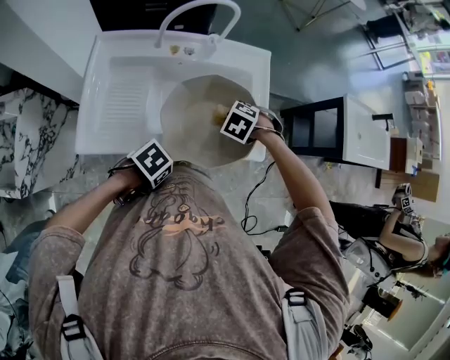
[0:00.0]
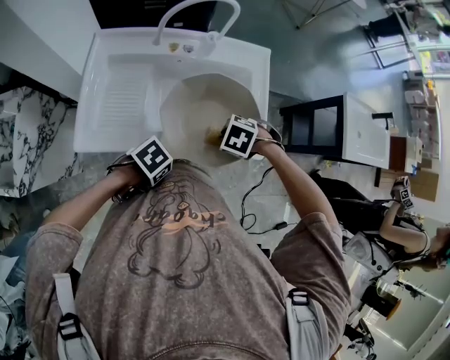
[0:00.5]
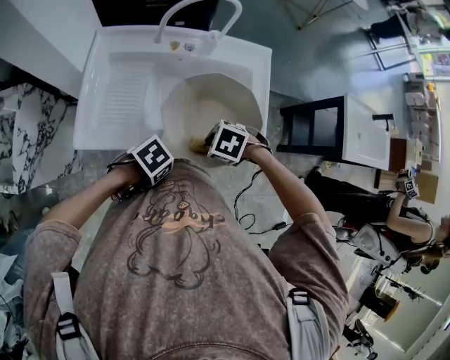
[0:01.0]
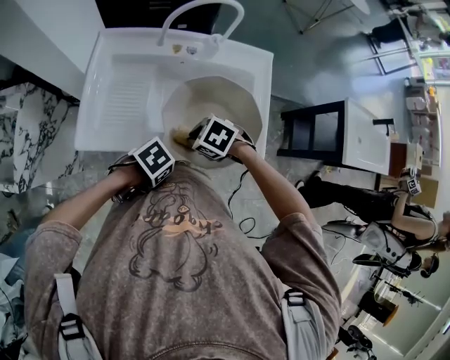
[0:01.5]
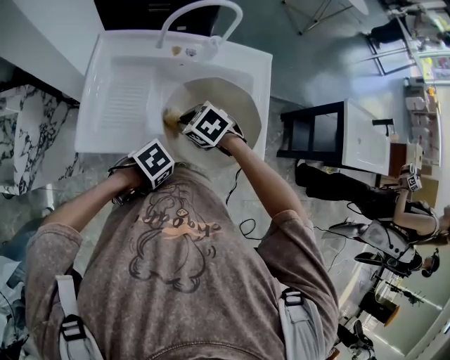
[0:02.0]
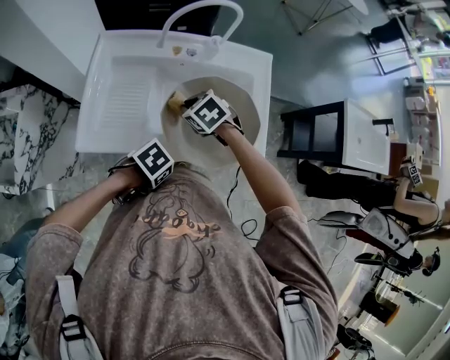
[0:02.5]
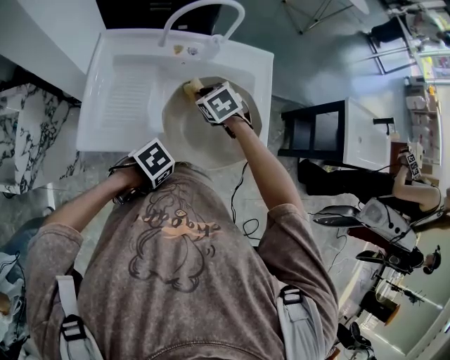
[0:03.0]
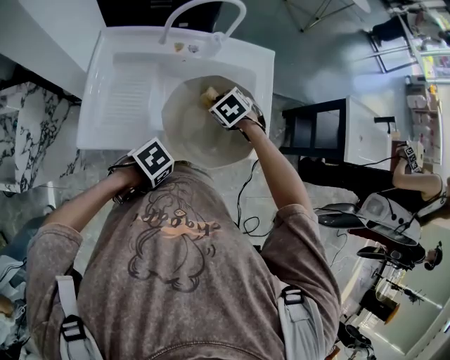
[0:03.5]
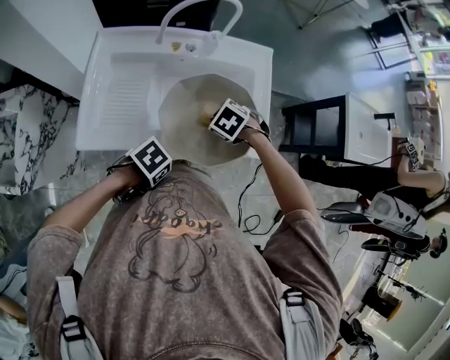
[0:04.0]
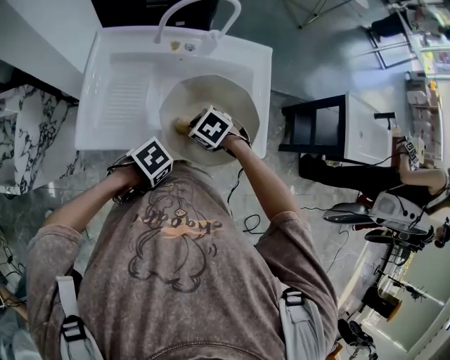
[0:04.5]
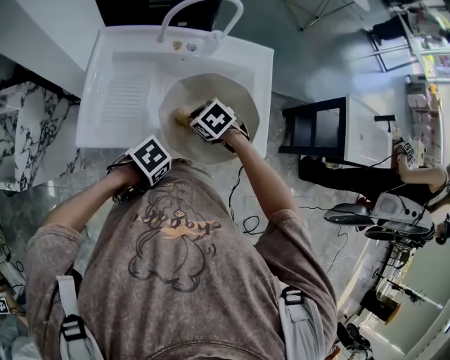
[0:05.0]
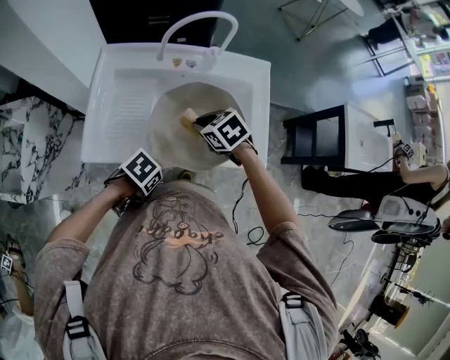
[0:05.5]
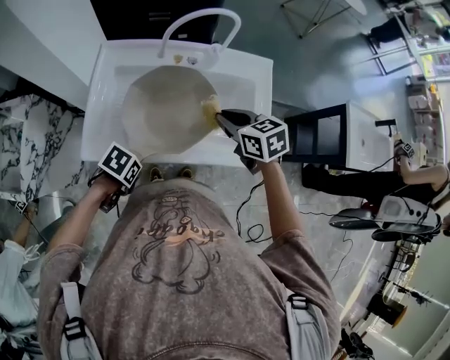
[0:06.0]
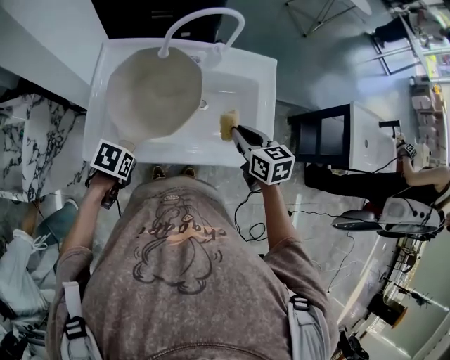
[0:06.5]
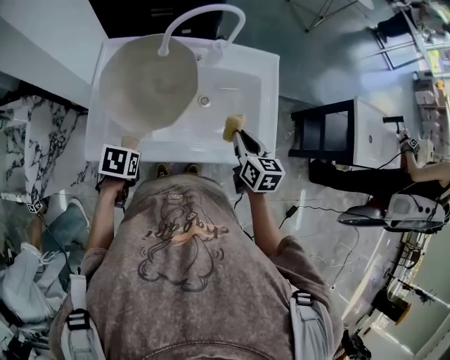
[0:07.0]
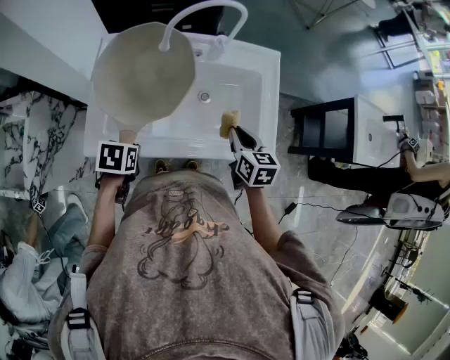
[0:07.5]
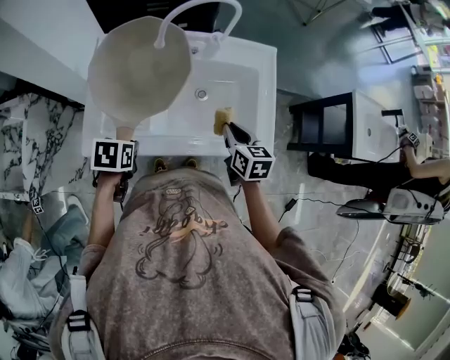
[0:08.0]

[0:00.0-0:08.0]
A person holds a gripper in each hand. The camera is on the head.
0:00.0 to 0:02.0: The right gripper moves roughly 15 cm, and rotates roughly 30 degrees.
0:02.0 to 0:04.0: The right gripper ends up roughly 10 cm from where it was, and changes its angle by about 20 degrees.
0:04.0 to 0:06.0: The right gripper goes approximately 10 cm upward, and tips its fingers upward by roughly 40 degrees.
0:06.0 to 0:08.0: The right gripper travels downward by roughly 10 cm, and changes its angle by approximately 30 degrees.

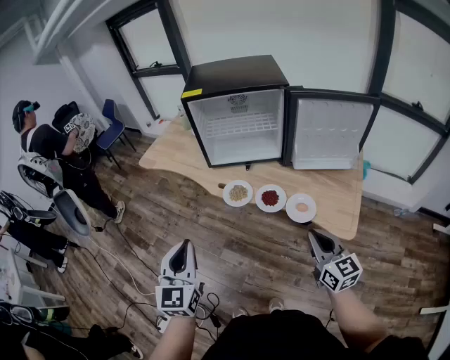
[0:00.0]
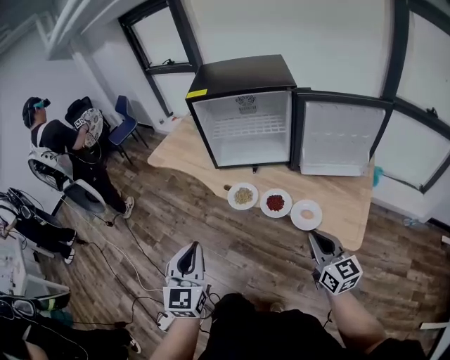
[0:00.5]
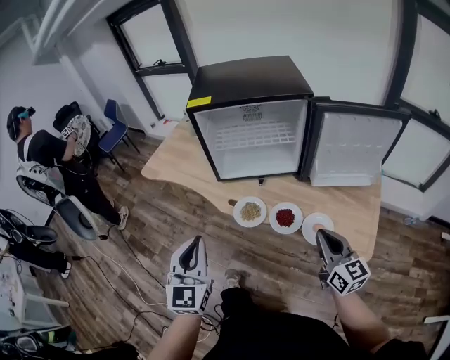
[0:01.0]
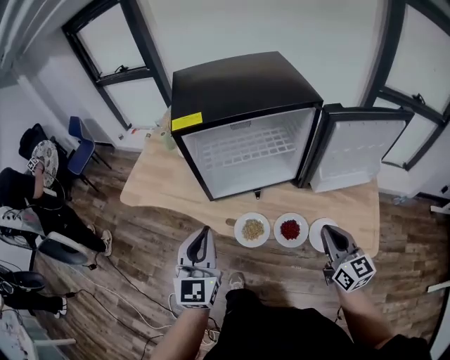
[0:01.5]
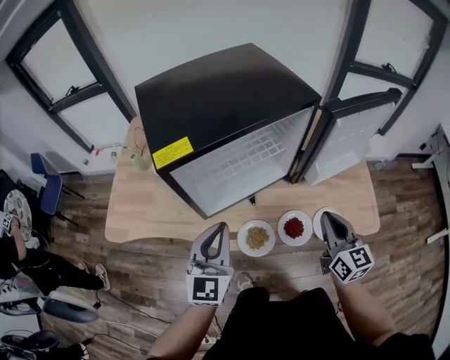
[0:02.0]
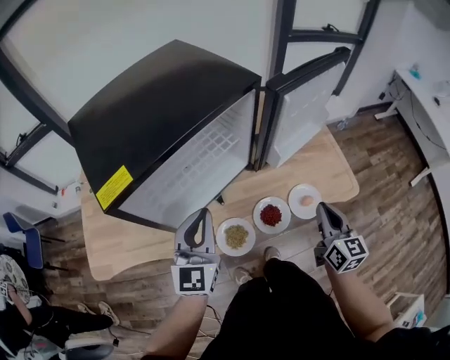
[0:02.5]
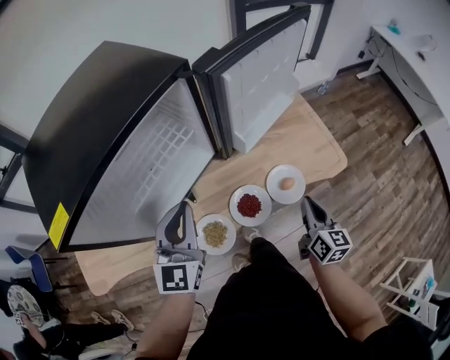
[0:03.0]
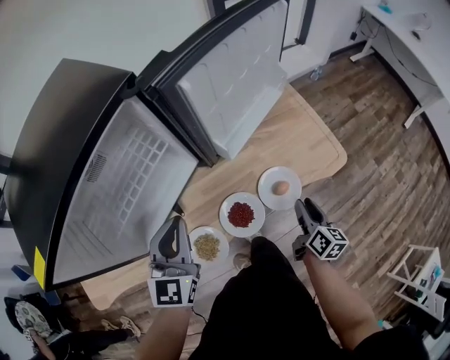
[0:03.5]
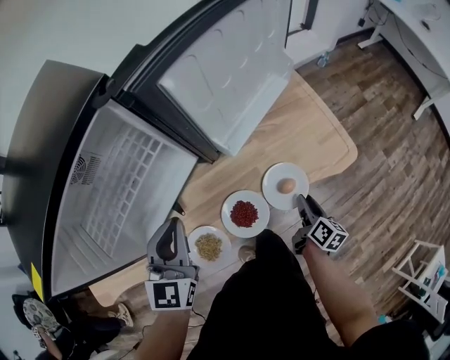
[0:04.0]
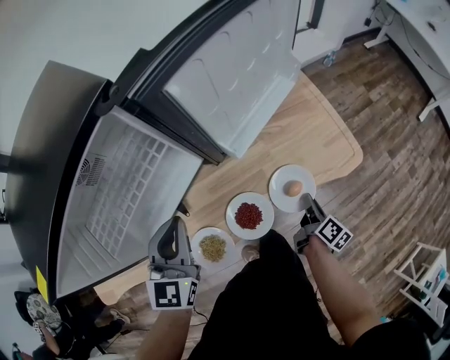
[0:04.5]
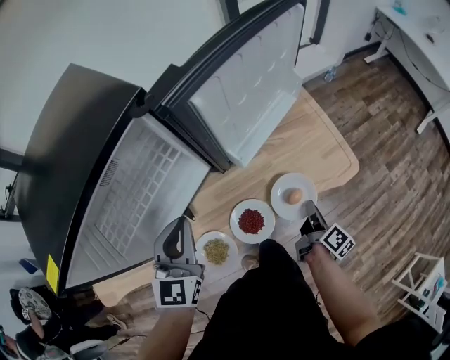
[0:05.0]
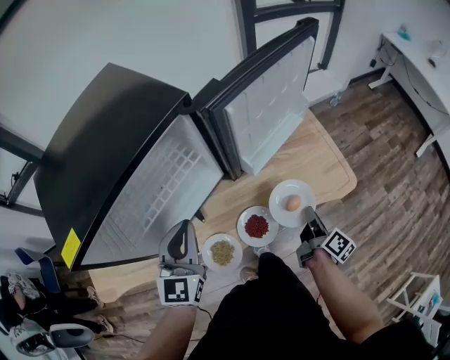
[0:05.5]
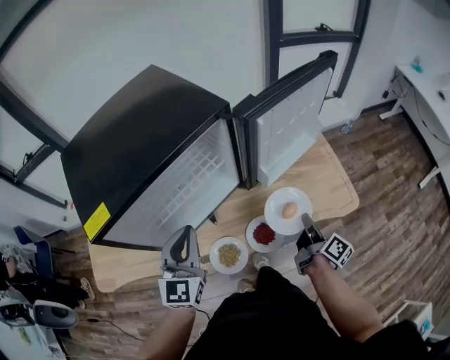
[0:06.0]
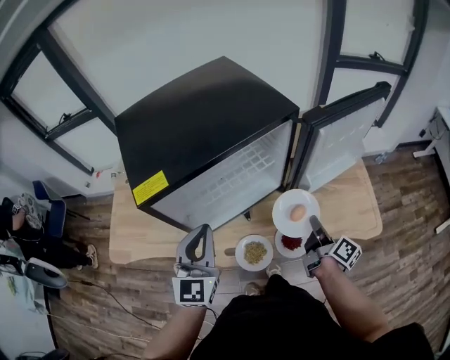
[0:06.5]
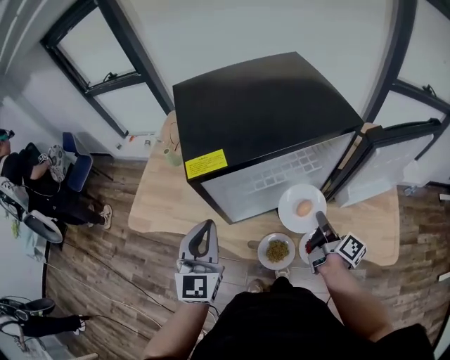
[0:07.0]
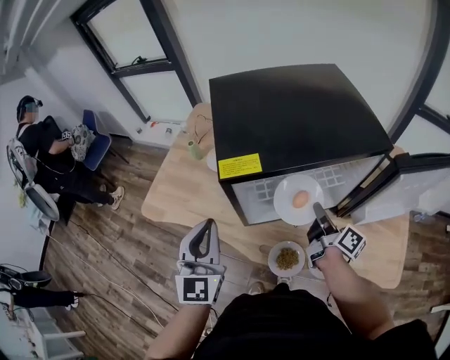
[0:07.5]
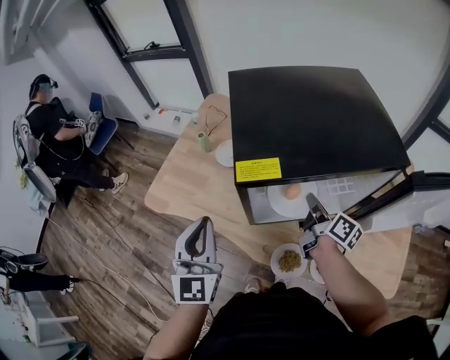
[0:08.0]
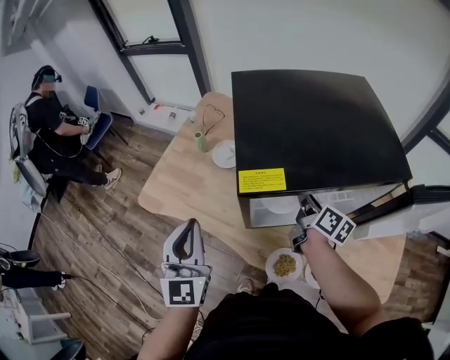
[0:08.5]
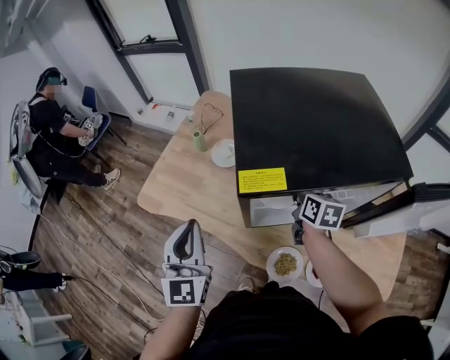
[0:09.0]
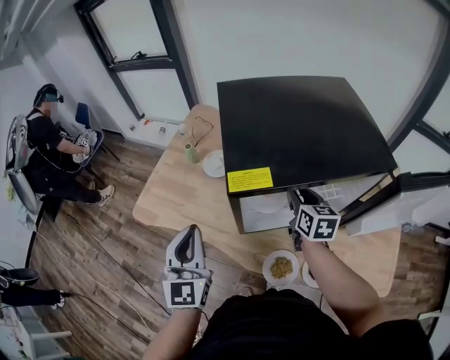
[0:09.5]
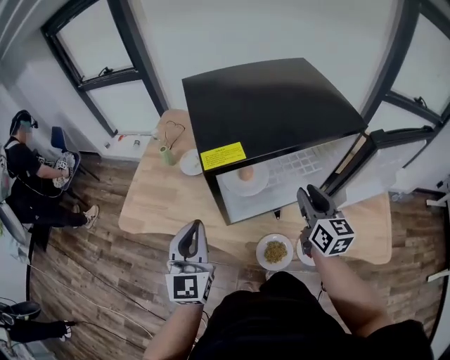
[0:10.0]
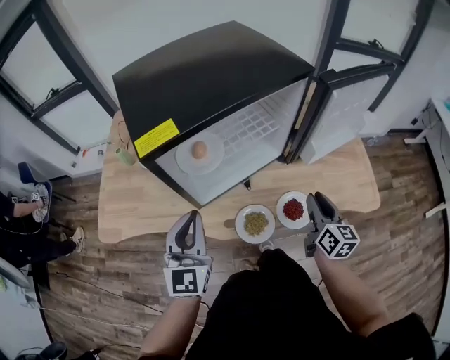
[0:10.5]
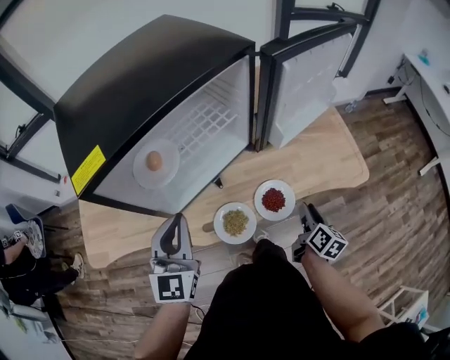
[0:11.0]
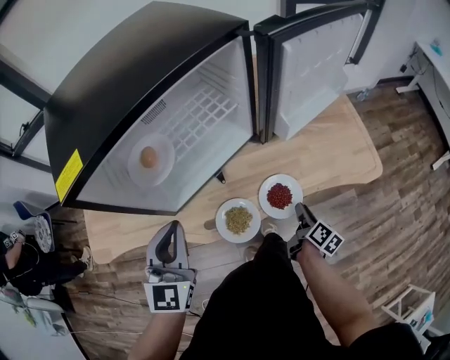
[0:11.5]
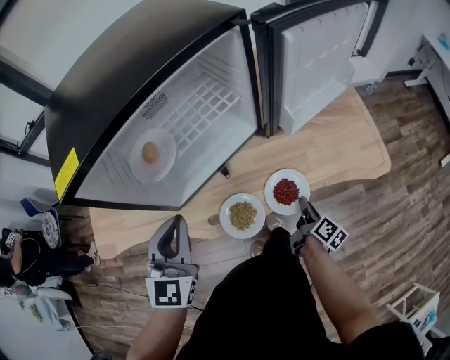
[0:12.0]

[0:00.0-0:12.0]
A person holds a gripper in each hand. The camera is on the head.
0:00.0 to 0:02.0: The right gripper shifts by some 25 cm, and swivels some 30 degrees; the left gripper shifts by roughly 40 cm, and turns by roughly 40 degrees.
0:02.0 to 0:04.0: The left gripper moves approximately 20 cm, and swivels some 30 degrees. Meanwhile the right gripper is displaced downward by about 30 cm, changes its angle by some 60 degrees, and opens its fingers.
0:04.0 to 0:06.0: The right gripper shifts some 20 cm upward and to the left, turns by some 30 degrees, and closes its fingers. Meanwhile the left gripper goes about 10 cm upward, to the left and backward.
0:06.0 to 0:08.0: The right gripper ends up roughly 40 cm from where it was, and turns by approximately 40 degrees, while the left gripper shifts by approximately 25 cm, and rotates roughly 40 degrees.
0:08.0 to 0:10.0: The right gripper moves backward and upward, some 10 cm, rotates around the line of its fingers by some 40 degrees, counterclockwise from behind, and opens.
0:10.0 to 0:12.0: The left gripper ends up approximately 15 cm from where it was, and turns by some 30 degrees. Meanwhile the right gripper goes approximately 30 cm downward, rolls clockwise, seen from behind, by some 60 degrees, and closes its fingers.

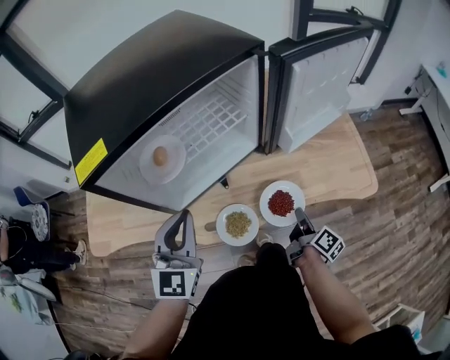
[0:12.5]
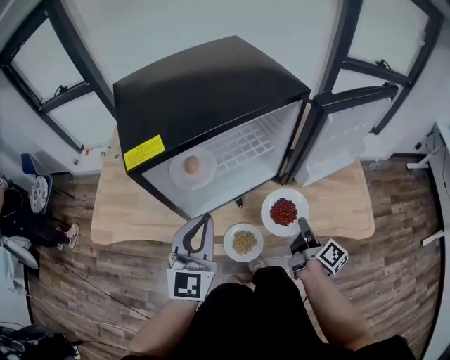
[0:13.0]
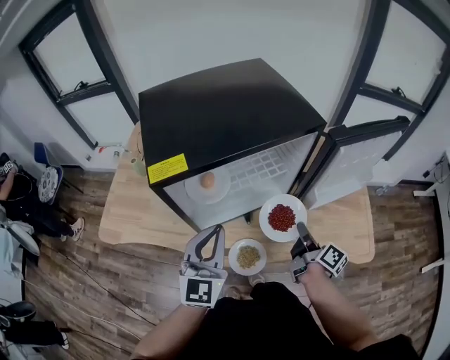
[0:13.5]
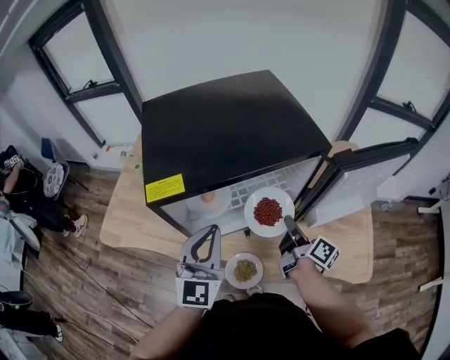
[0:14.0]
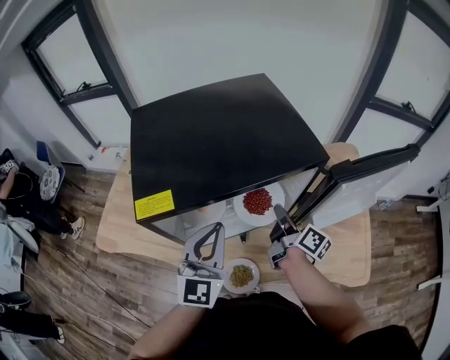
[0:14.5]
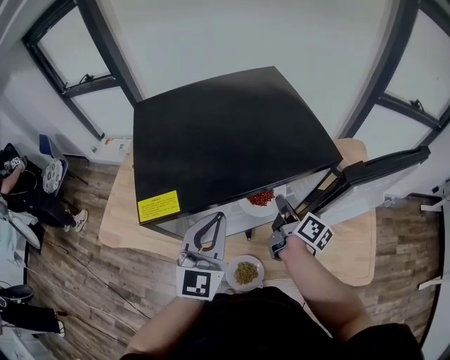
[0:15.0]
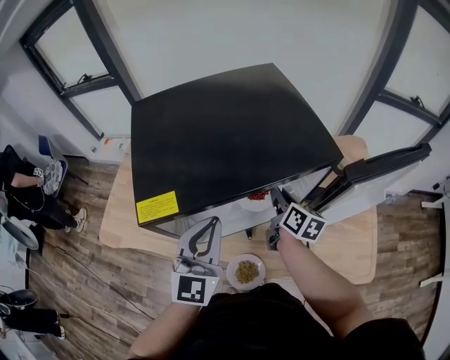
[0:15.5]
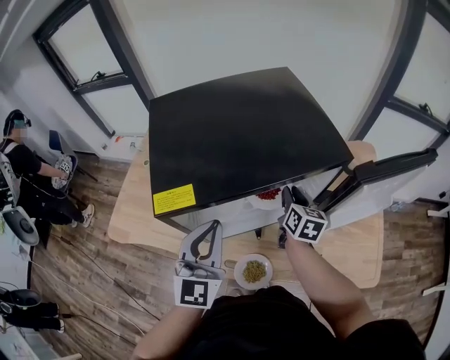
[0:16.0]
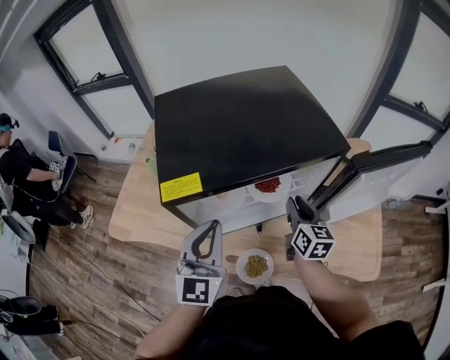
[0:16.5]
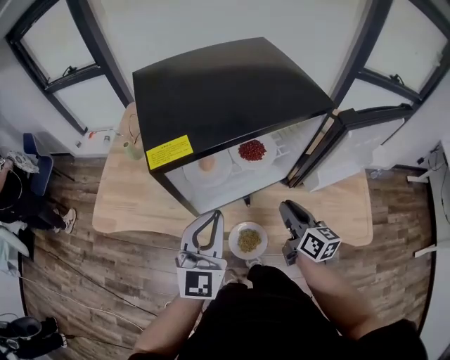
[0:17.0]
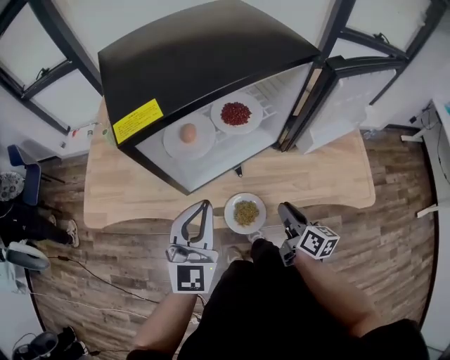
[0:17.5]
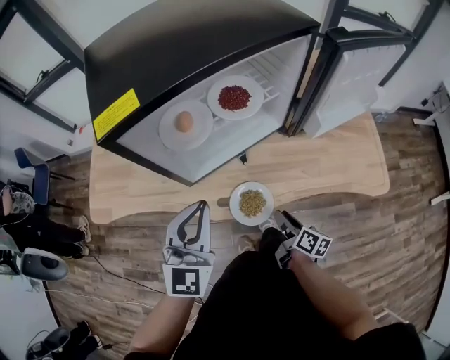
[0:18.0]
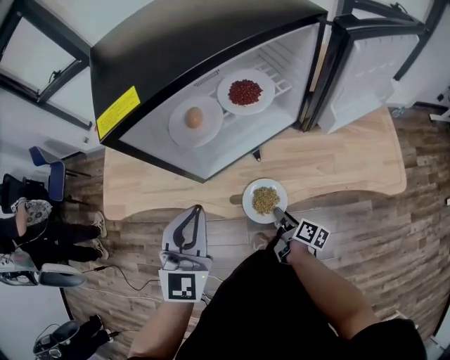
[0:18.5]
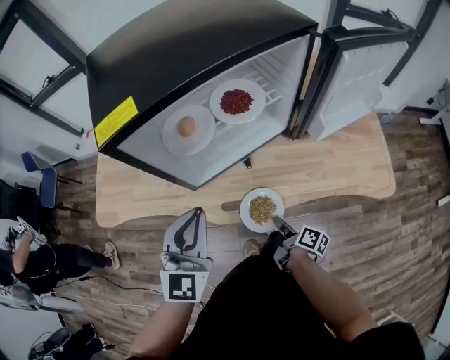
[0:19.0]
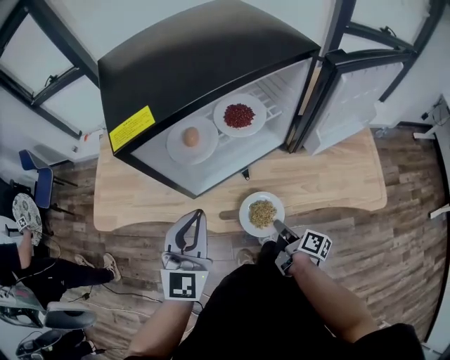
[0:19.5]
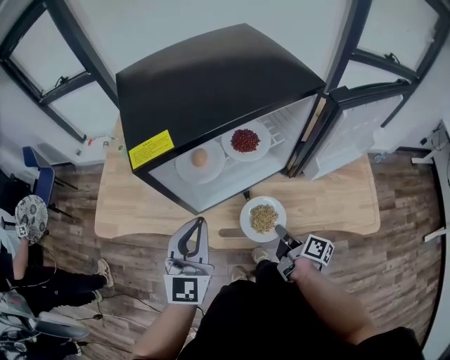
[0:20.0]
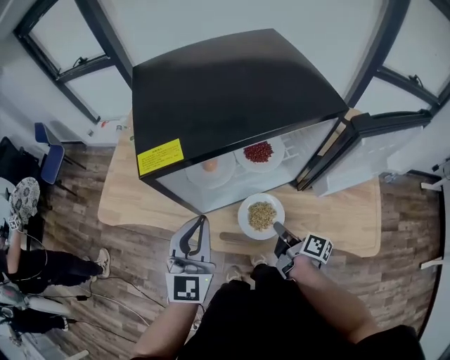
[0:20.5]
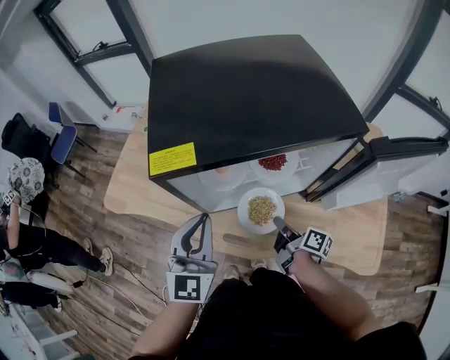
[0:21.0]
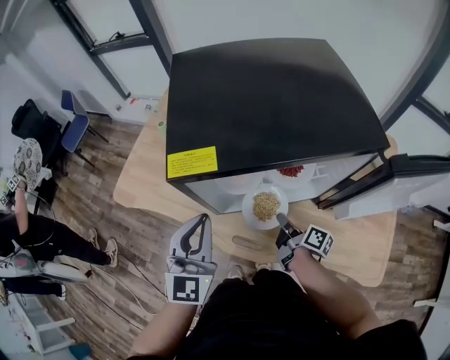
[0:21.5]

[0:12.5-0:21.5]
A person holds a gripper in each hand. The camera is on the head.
0:12.5 to 0:14.5: The left gripper heads upward and forward, covering some 15 cm; the right gripper is displaced forward, upward and to the left by approximately 35 cm, and changes its angle by some 30 degrees.
0:14.5 to 0:17.0: The right gripper heads backward, covering roughly 15 cm, and rotates some 30 degrees. Meanwhile the left gripper is displaced backward by about 10 cm.
0:17.0 to 0:19.5: The right gripper shifts approximately 20 cm downward and backward, and rolls clockwise, seen from behind, by approximately 50 degrees, while the left gripper travels downward by about 5 cm.
0:19.5 to 0:21.5: The left gripper is displaced forward by some 5 cm, and changes its angle by approximately 20 degrees. The right gripper is displaced forward by roughly 20 cm.
